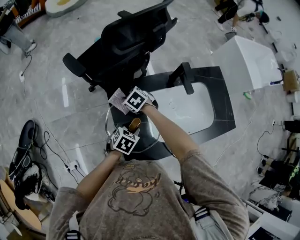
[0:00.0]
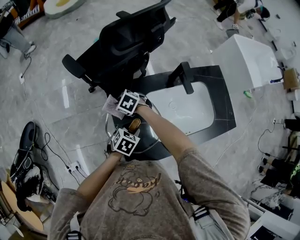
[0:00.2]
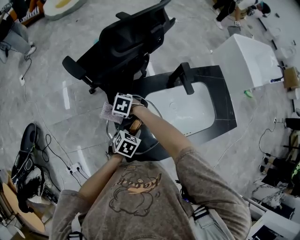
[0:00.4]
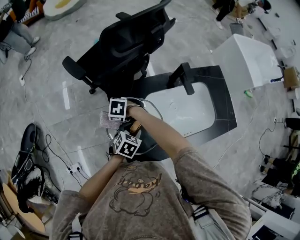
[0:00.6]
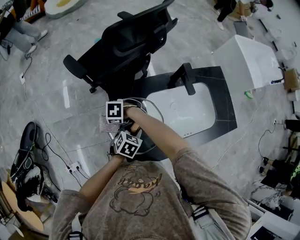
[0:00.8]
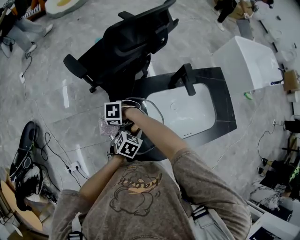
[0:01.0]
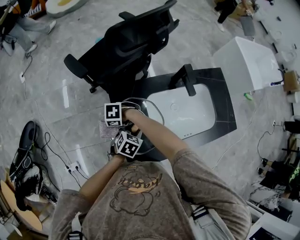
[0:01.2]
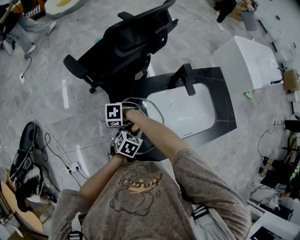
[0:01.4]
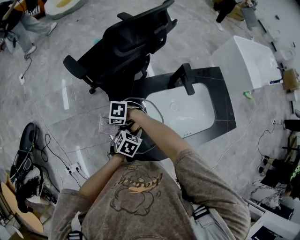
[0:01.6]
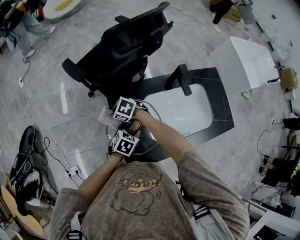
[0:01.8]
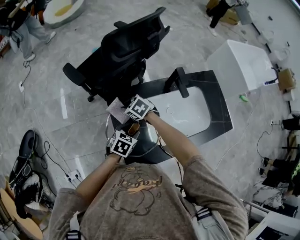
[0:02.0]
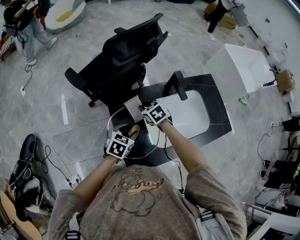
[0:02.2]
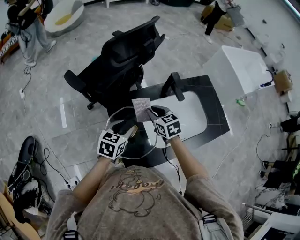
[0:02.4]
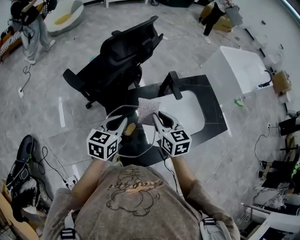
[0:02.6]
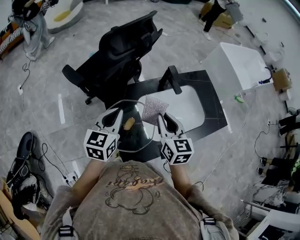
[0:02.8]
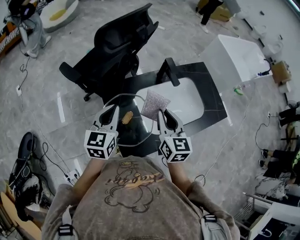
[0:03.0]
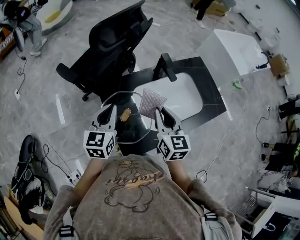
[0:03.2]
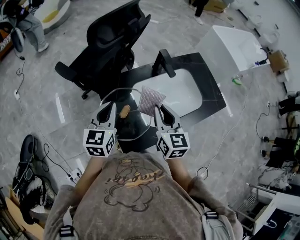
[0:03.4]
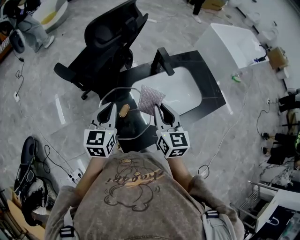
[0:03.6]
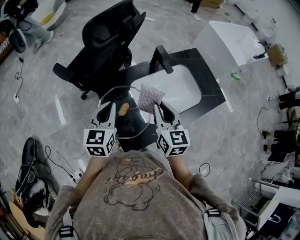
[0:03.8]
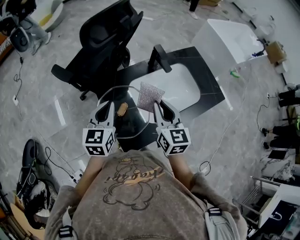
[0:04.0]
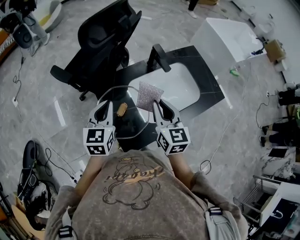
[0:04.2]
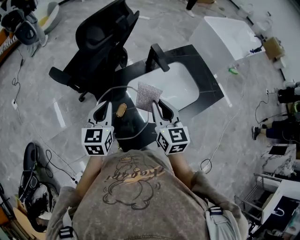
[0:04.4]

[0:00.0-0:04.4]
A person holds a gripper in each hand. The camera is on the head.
0.0 to 1.4 s: The right gripper changes place by some 15 cm, and changes its angle by approximately 40 degrees.
1.4 to 3.0 s: The left gripper is displaced upward by approximately 20 cm, points its fingers about 40 degrees further upward, and closes its fingers, while the right gripper shifts by about 35 cm, and tilts its fingers roughly 40 degrees upward.
3.0 to 4.4 s: The grippers move only a little.

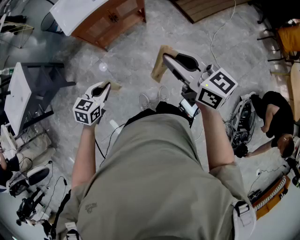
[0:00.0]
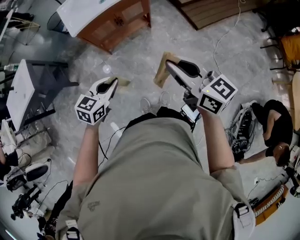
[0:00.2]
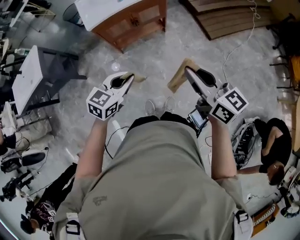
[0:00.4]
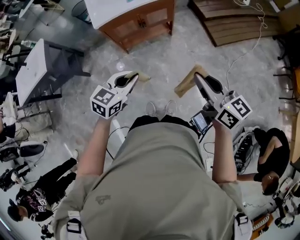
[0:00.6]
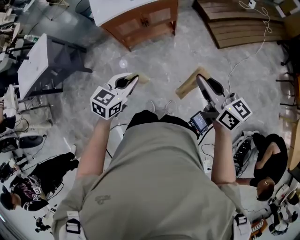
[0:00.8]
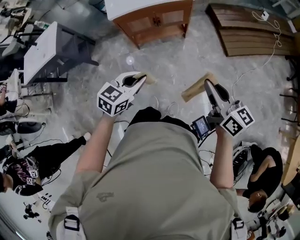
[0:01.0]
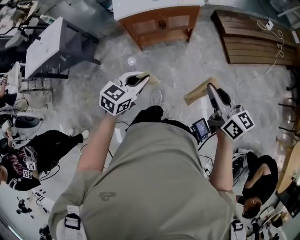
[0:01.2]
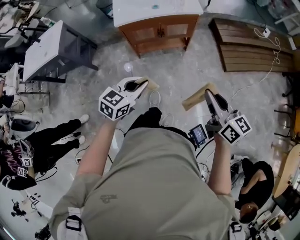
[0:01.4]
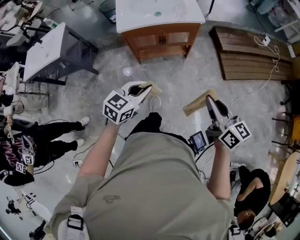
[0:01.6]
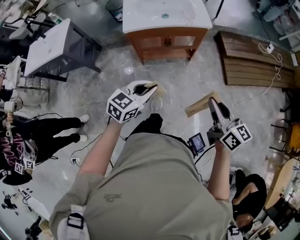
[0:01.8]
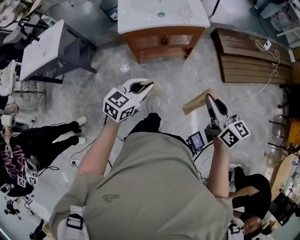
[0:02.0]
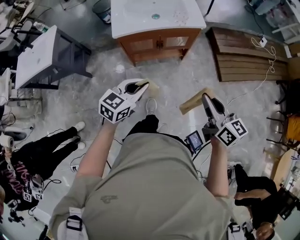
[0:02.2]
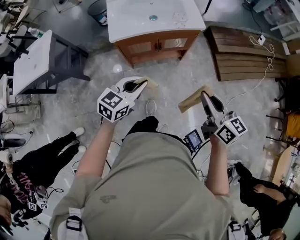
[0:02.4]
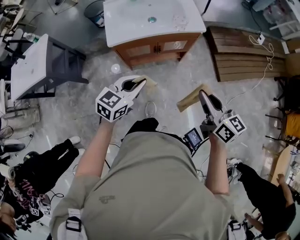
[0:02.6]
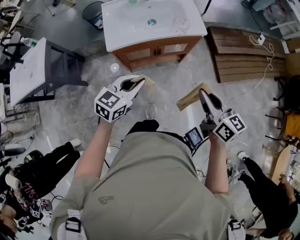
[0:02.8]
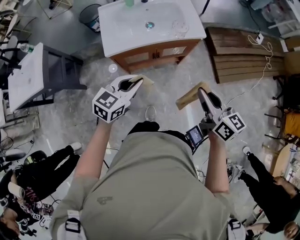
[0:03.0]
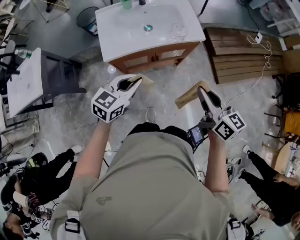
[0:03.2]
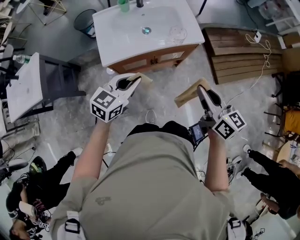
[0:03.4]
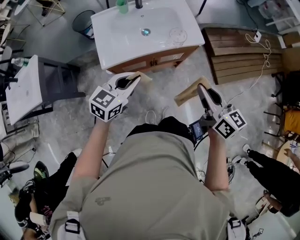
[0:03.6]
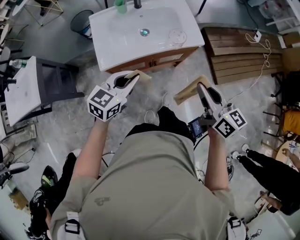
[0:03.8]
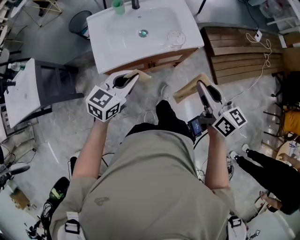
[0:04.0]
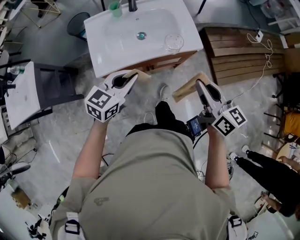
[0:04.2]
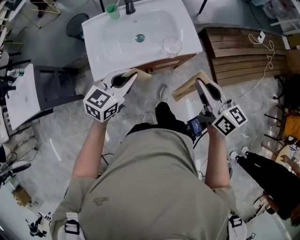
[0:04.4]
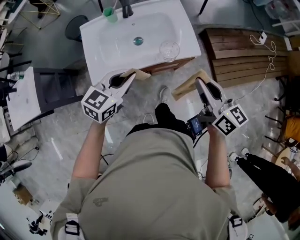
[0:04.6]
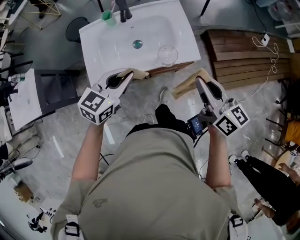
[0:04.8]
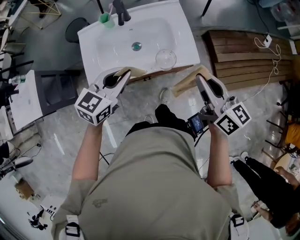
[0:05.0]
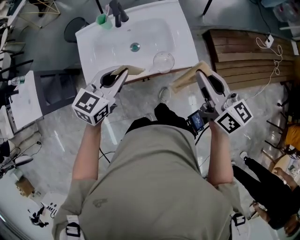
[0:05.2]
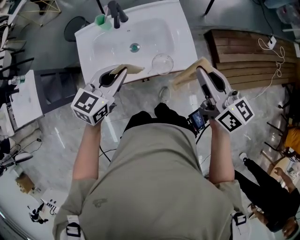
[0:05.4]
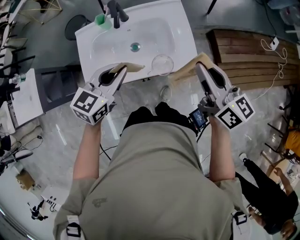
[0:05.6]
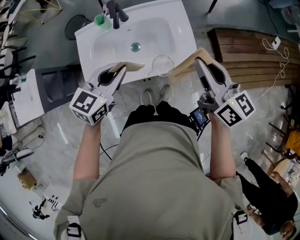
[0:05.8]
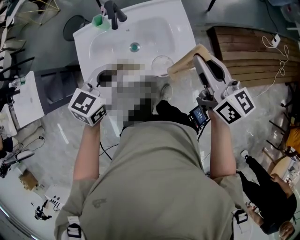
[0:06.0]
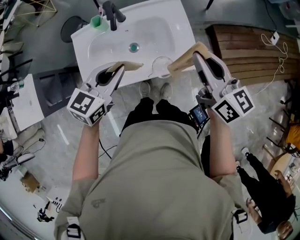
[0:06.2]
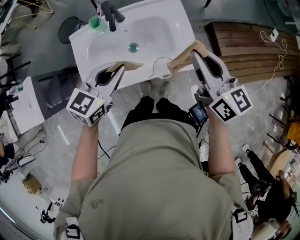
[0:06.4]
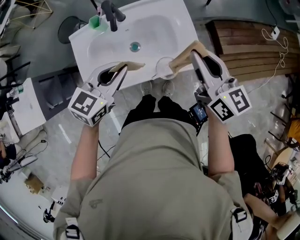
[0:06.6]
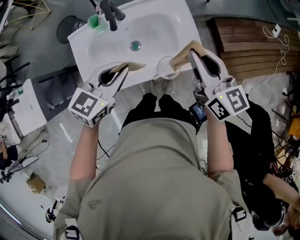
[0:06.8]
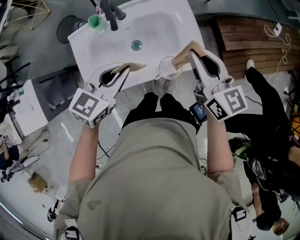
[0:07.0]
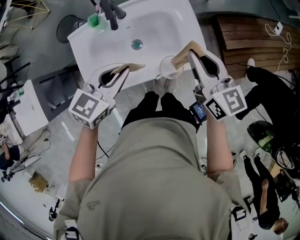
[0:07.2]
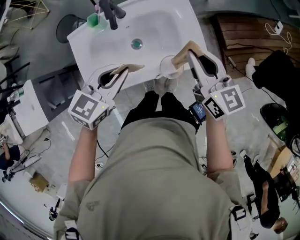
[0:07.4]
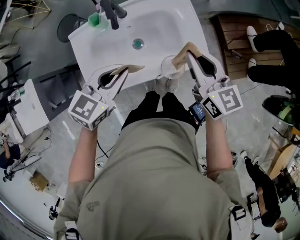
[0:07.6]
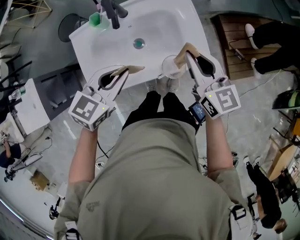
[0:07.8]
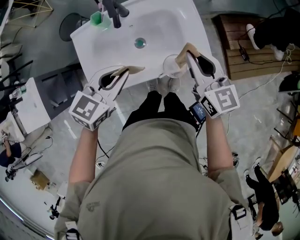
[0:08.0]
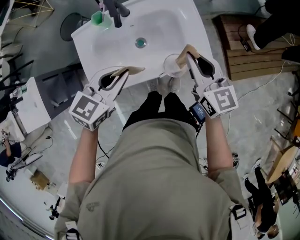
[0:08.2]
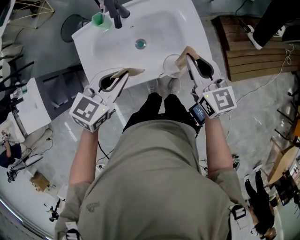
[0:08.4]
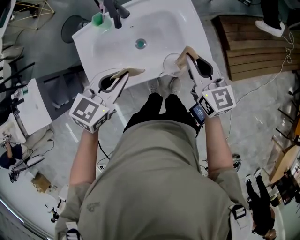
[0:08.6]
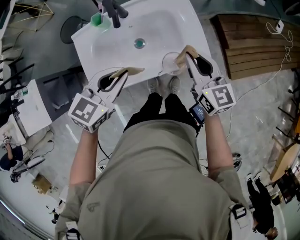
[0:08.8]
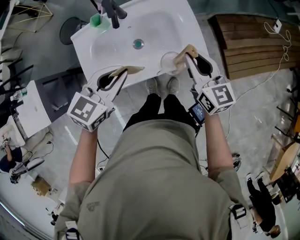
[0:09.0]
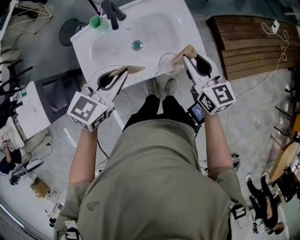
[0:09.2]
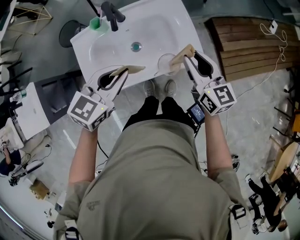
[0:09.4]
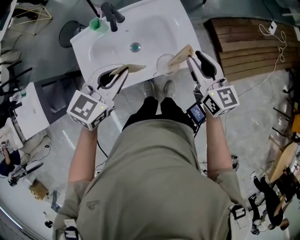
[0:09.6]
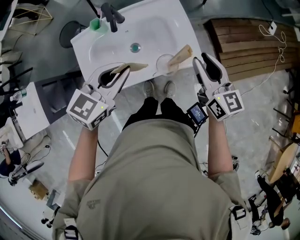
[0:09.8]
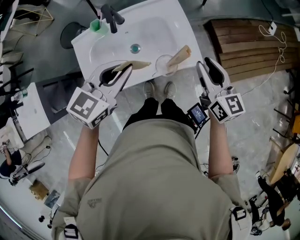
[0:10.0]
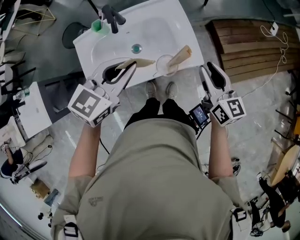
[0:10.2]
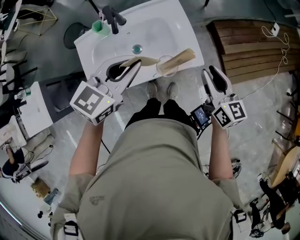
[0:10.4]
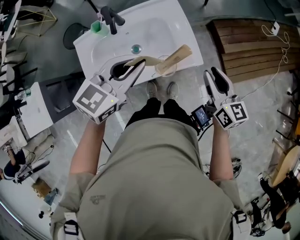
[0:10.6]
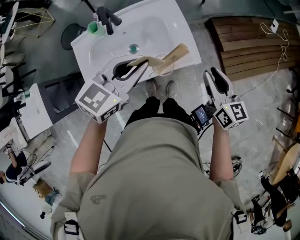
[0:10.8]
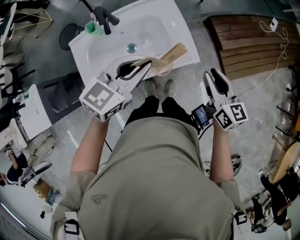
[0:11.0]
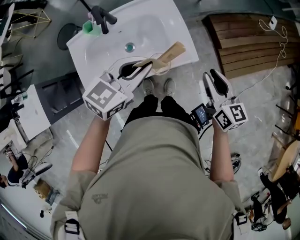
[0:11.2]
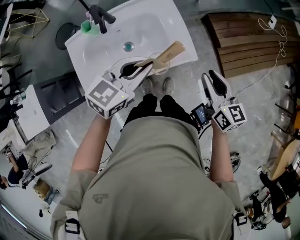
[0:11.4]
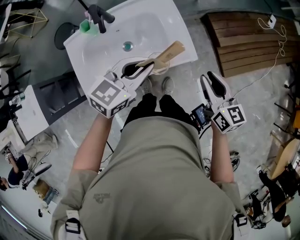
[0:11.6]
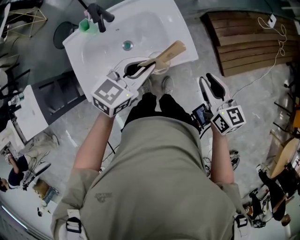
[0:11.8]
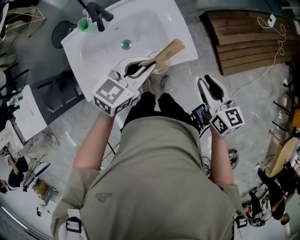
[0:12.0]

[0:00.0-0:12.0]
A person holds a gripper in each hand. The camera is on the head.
0.0 to 1.6 s: The right gripper moves to the right and forward, some 10 cm. The left gripper is displaced to the right, upward and forward by roughly 15 cm.
1.6 to 3.0 s: The two grippers go about 25 cm forward and to the left.
3.0 to 4.4 s: The two grippers go some 20 cm forward.
4.4 to 6.0 s: The grippers both shift forward by approximately 15 cm.
6.0 to 7.6 s: The right gripper shifts about 10 cm downward and to the left.
7.6 to 9.0 s: There are only small adjustments of the grippers.
9.0 to 10.4 s: The right gripper travels to the right by about 10 cm, while the left gripper goes some 10 cm to the right and upward.
10.4 to 12.0 s: The left gripper goes some 10 cm downward and to the right, while the right gripper moves some 5 cm.

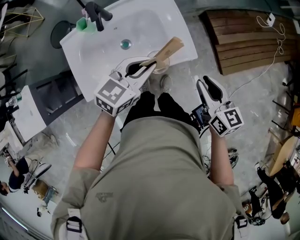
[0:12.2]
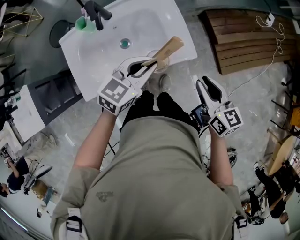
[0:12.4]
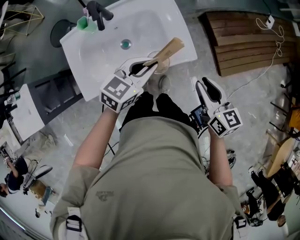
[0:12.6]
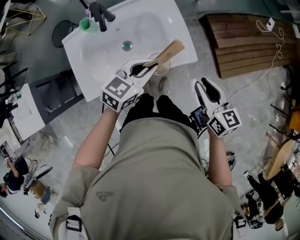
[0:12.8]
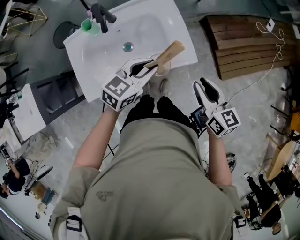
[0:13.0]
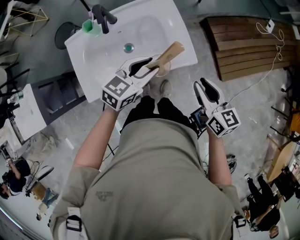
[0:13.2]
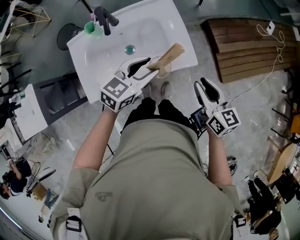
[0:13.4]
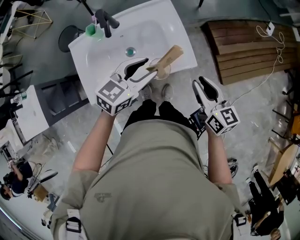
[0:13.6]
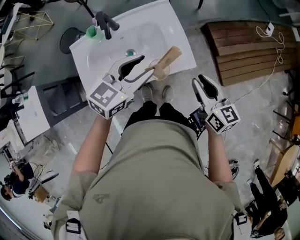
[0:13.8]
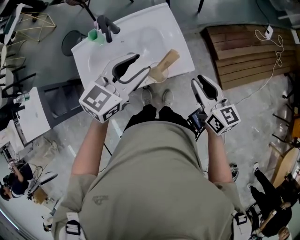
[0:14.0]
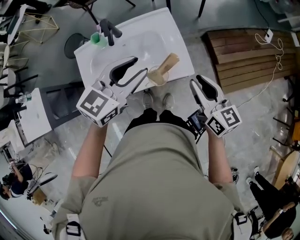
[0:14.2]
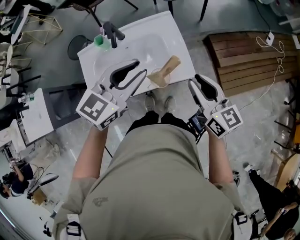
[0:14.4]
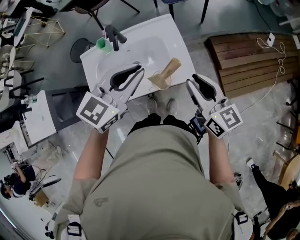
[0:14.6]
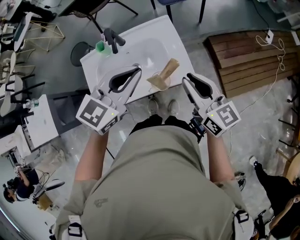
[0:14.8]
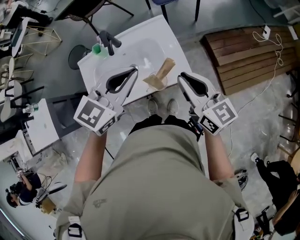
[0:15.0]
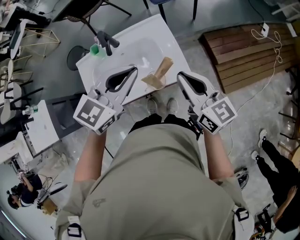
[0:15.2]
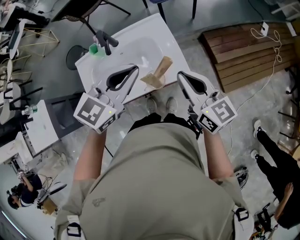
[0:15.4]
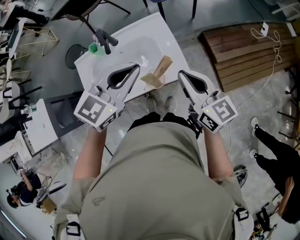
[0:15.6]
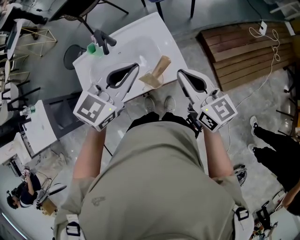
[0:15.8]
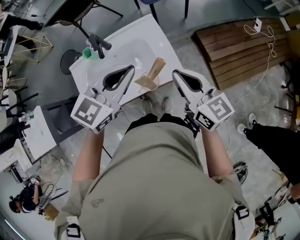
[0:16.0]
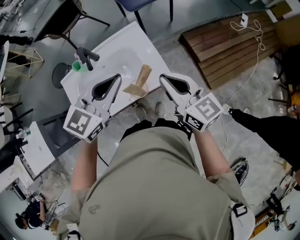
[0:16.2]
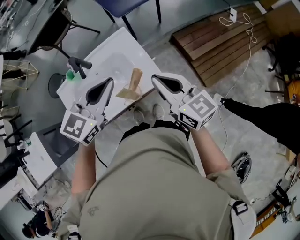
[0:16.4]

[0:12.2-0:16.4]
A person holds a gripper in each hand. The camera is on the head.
12.2 to 13.6 s: The left gripper opens.
13.6 to 15.0 s: The two grippers go approximately 15 cm upward. The left gripper closes its fingers.
15.0 to 16.4 s: There are only small adjustments of the grippers.

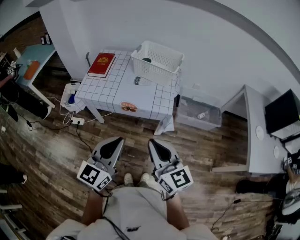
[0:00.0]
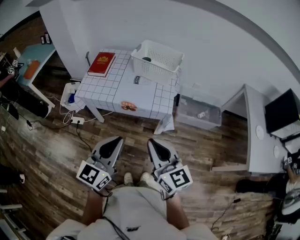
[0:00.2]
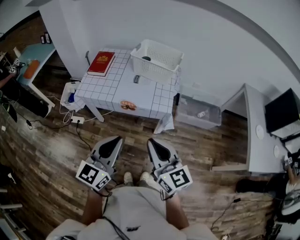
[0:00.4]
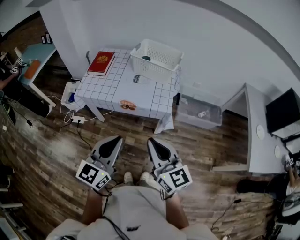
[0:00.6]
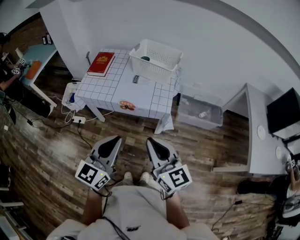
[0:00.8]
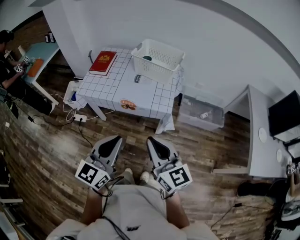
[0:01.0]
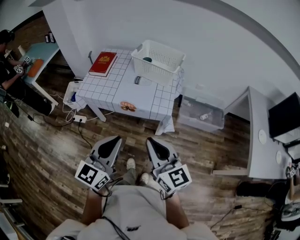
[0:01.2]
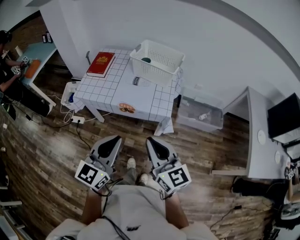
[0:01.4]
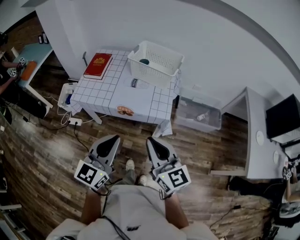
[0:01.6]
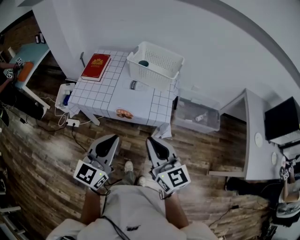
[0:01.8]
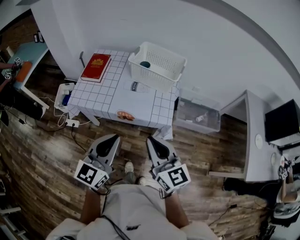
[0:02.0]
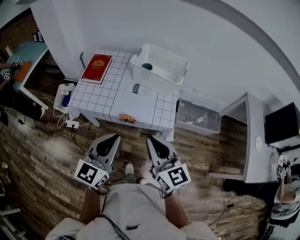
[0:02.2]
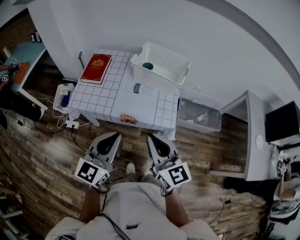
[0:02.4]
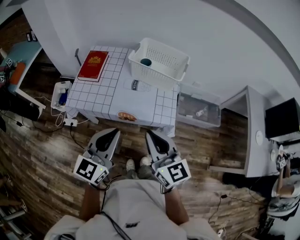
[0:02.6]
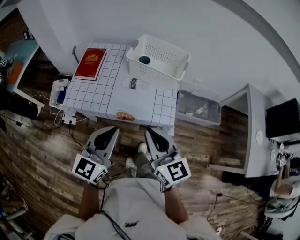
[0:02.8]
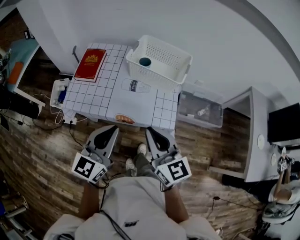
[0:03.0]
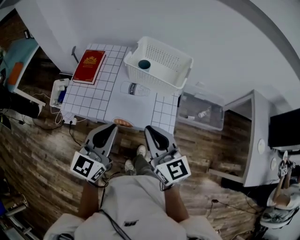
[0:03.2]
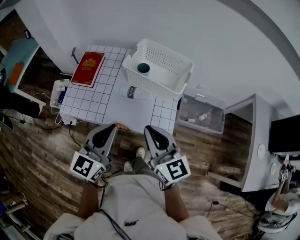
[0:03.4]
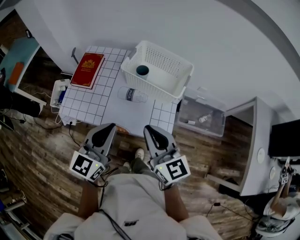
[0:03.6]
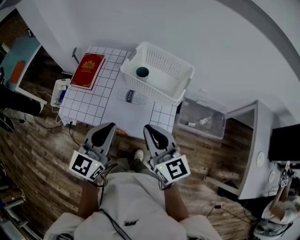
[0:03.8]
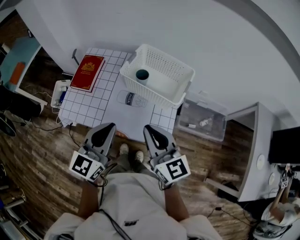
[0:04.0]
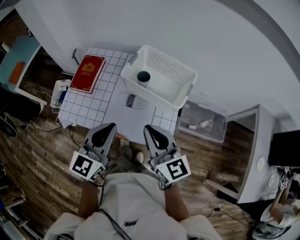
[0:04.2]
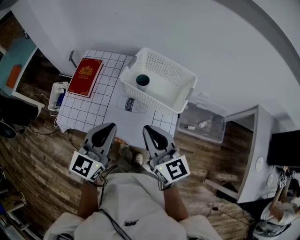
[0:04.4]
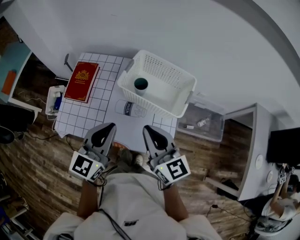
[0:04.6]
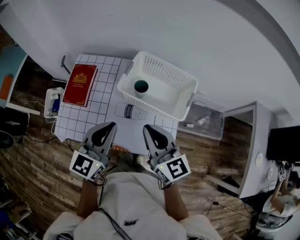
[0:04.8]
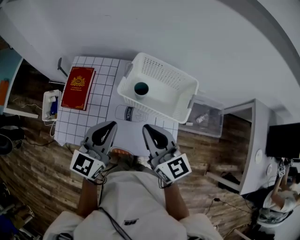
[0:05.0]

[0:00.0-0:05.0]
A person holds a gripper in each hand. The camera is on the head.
0.0 to 1.6 s: Both grippers travel together forward, some 5 cm.
1.6 to 3.4 s: Both grippers travel together forward, approximately 25 cm.
3.4 to 5.0 s: Both grippers move forward, roughly 20 cm.
